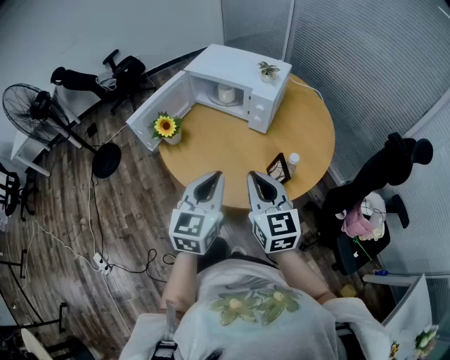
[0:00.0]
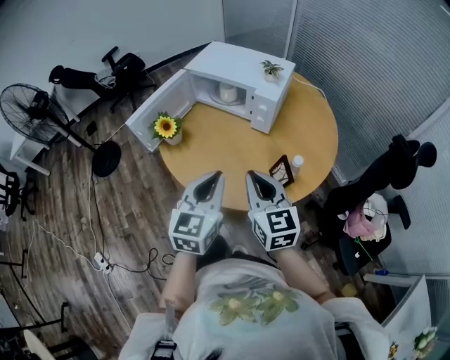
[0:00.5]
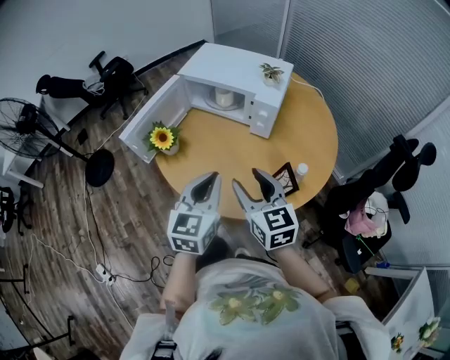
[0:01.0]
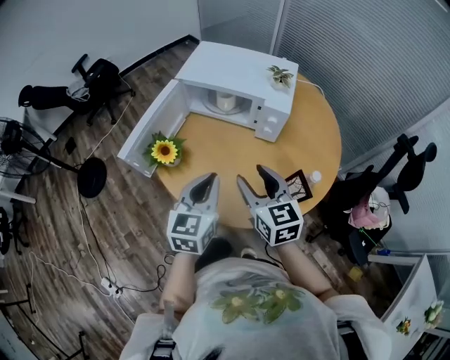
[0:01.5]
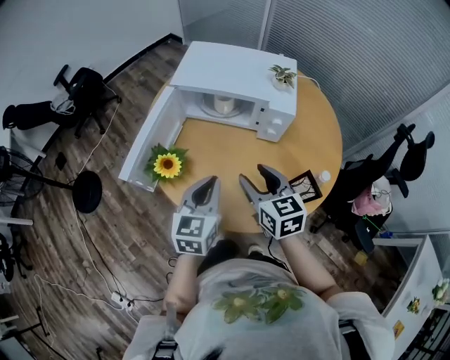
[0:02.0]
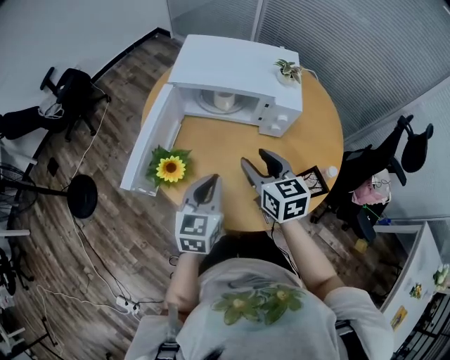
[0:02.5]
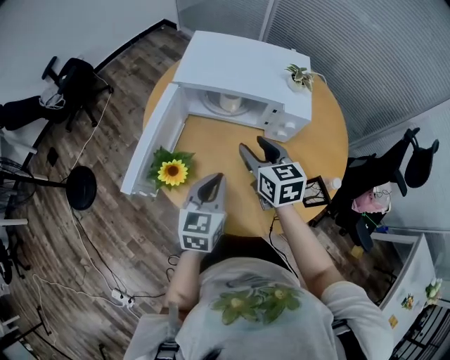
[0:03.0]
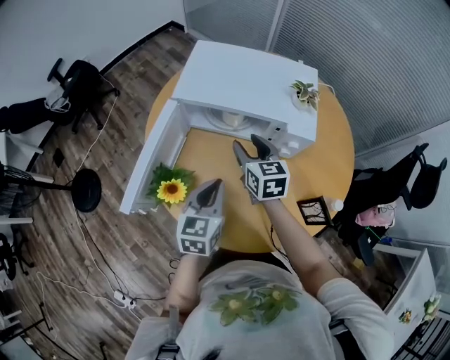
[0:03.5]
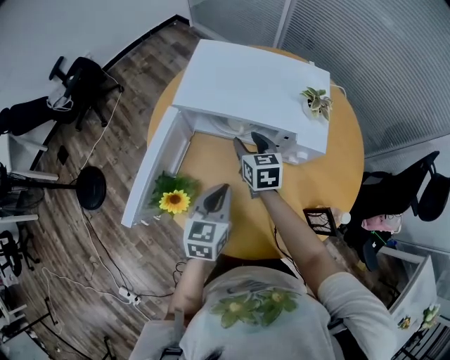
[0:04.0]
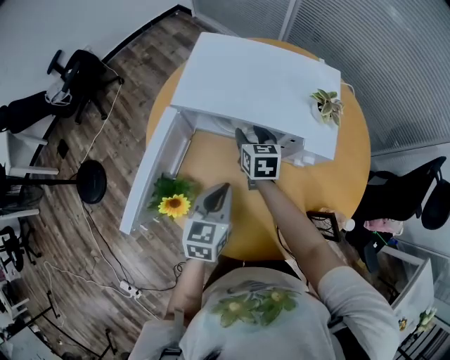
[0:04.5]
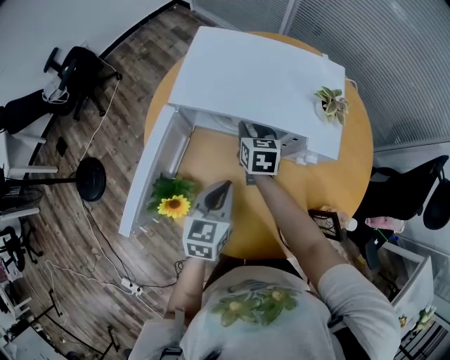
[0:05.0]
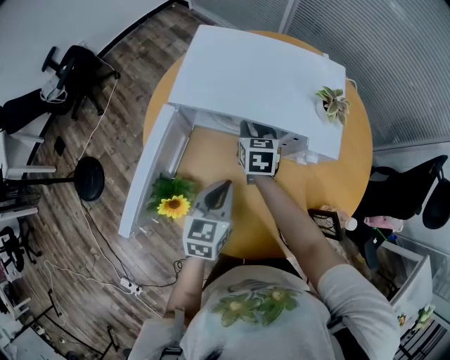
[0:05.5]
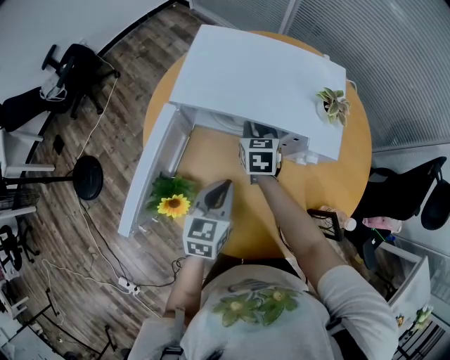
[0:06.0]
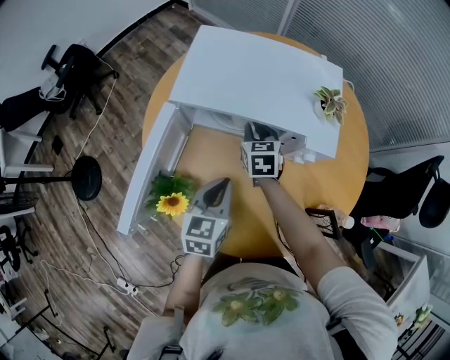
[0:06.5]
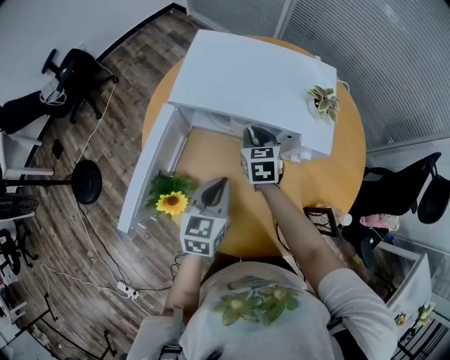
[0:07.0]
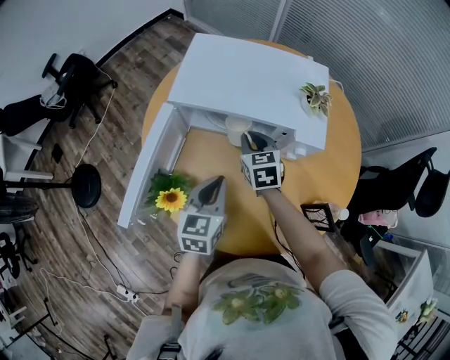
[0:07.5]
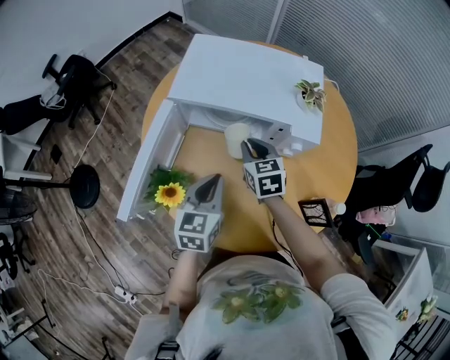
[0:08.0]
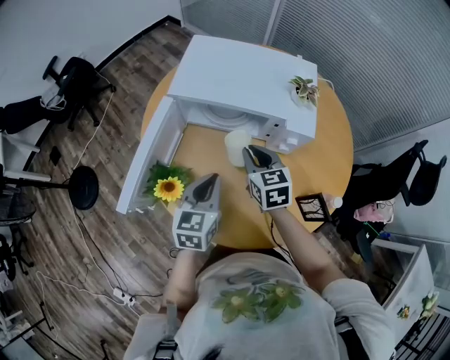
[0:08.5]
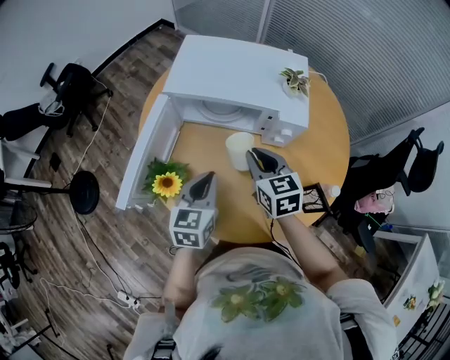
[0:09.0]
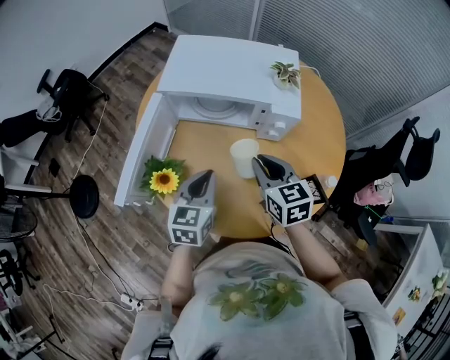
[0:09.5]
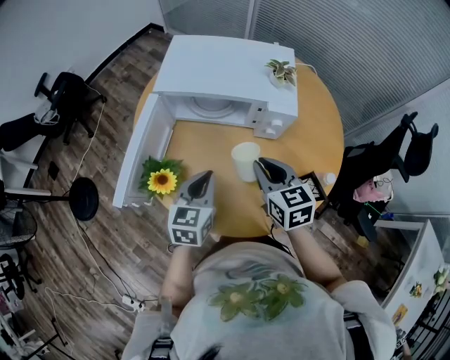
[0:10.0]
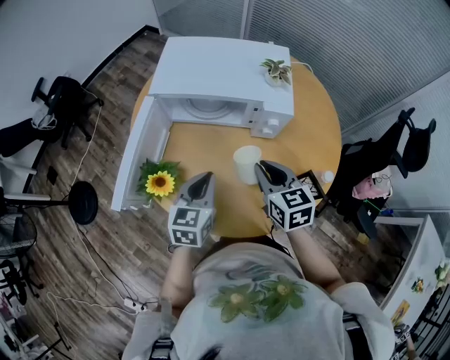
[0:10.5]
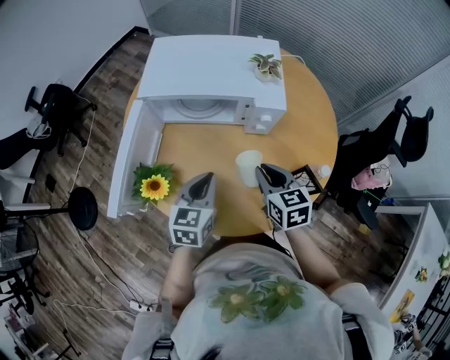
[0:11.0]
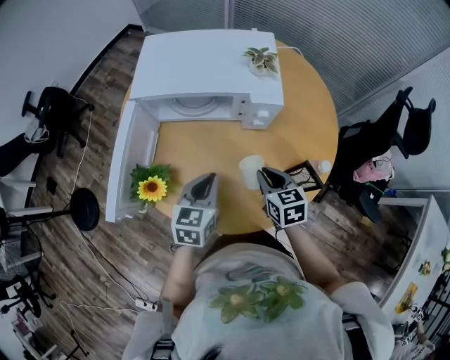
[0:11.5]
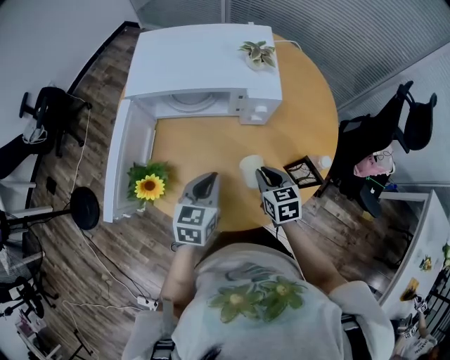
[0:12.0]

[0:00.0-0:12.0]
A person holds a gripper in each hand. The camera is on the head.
0:00.0 to 0:02.0: The right gripper heads forward and to the left, covering some 20 cm, and opens, while the left gripper travels forward, to the left and downward by about 25 cm.
0:02.0 to 0:04.0: The right gripper travels forward and downward by roughly 30 cm, while the left gripper is displaced forward and downward by approximately 15 cm.
0:04.0 to 0:06.0: The right gripper travels forward by some 5 cm, and closes its fingers.
0:06.0 to 0:08.0: The right gripper shifts roughly 10 cm backward.
0:08.0 to 0:10.0: The left gripper goes some 5 cm backward, while the right gripper shifts approximately 20 cm backward, upward and to the right.
0:10.0 to 0:12.0: The right gripper heads downward and to the right, covering roughly 15 cm, while the left gripper goes about 5 cm to the right.

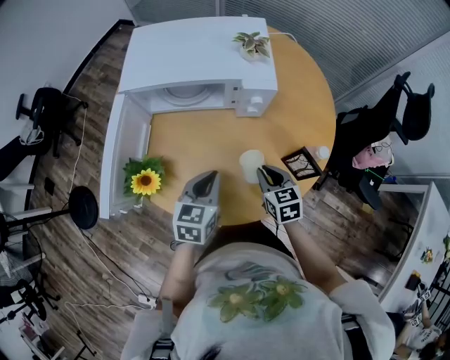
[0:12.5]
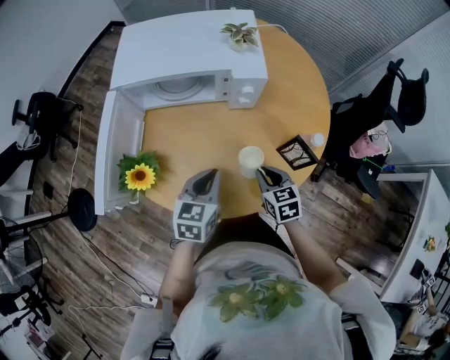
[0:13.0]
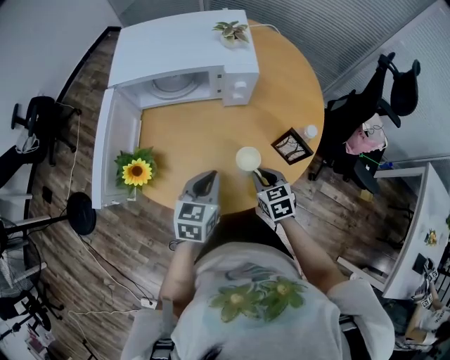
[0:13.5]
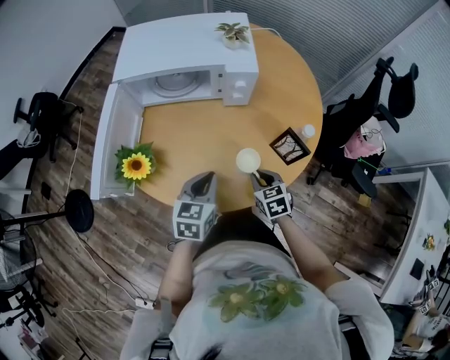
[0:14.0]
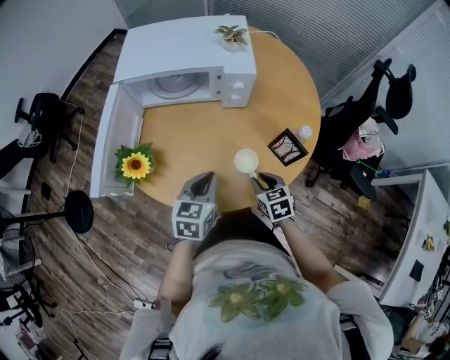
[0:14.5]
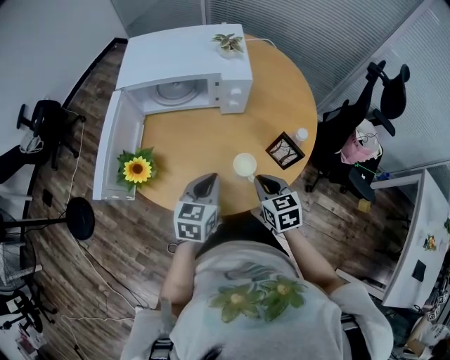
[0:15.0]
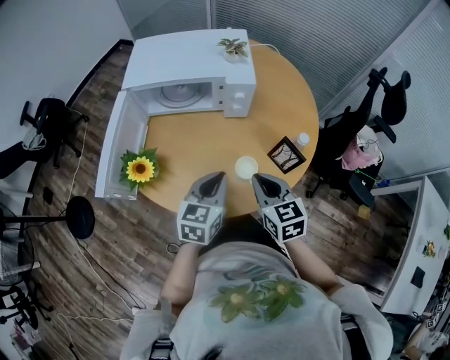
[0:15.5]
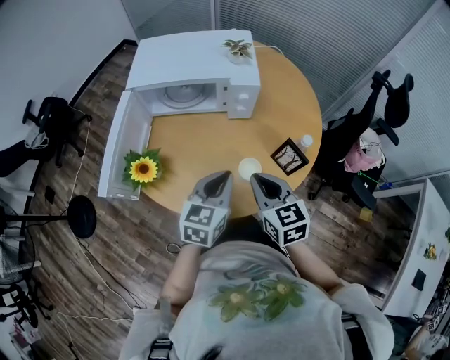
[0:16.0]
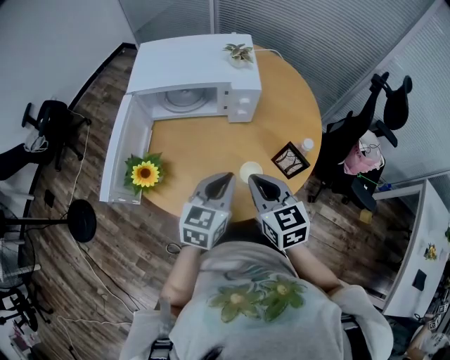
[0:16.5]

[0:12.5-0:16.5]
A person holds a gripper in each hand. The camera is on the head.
0:12.5 to 0:14.5: Both grippers travel together backward, roughly 5 cm.
0:14.5 to 0:16.5: The left gripper is displaced upward by some 10 cm; the right gripper shifts roughly 20 cm upward, changes its angle by roughly 20 degrees, and closes.

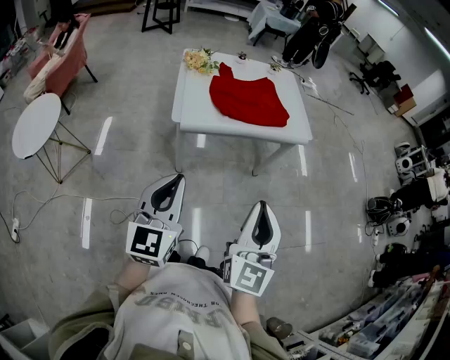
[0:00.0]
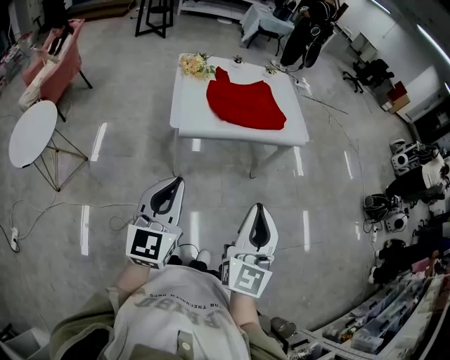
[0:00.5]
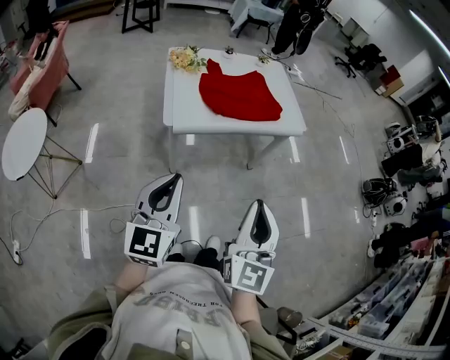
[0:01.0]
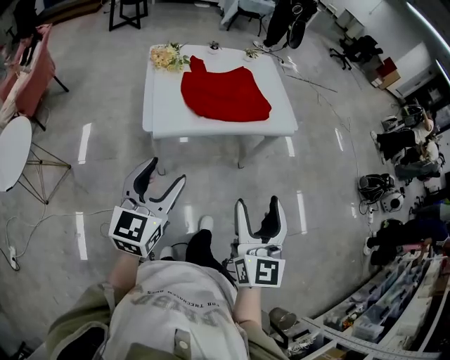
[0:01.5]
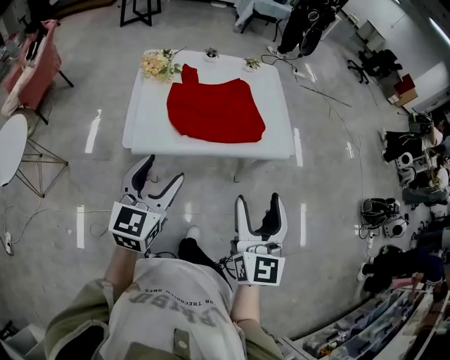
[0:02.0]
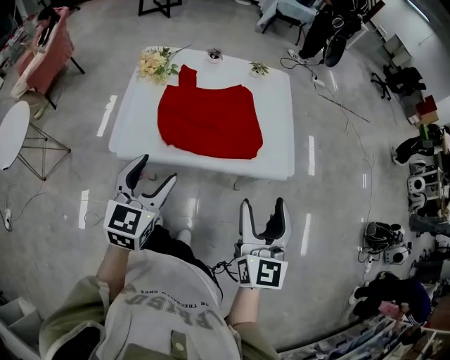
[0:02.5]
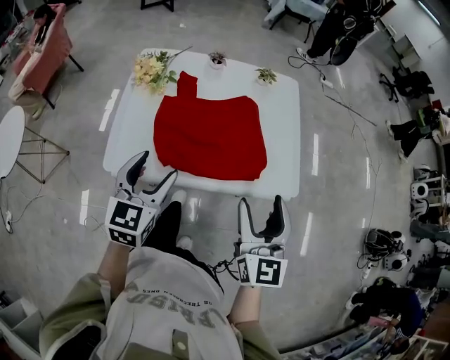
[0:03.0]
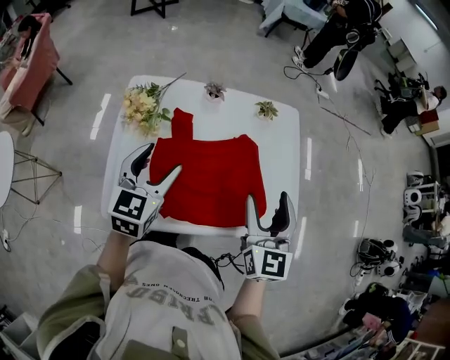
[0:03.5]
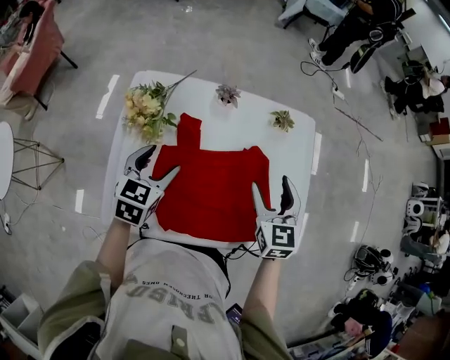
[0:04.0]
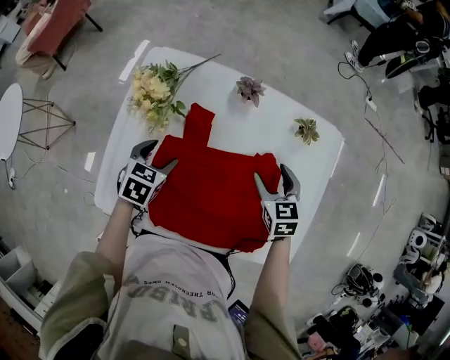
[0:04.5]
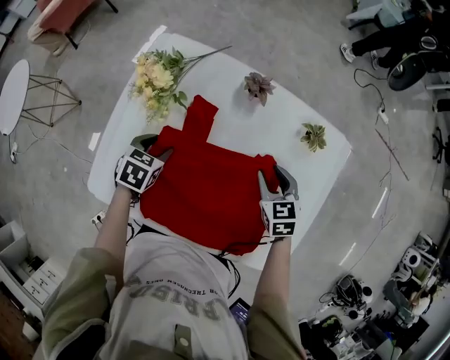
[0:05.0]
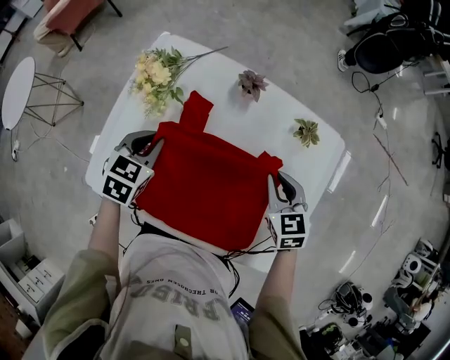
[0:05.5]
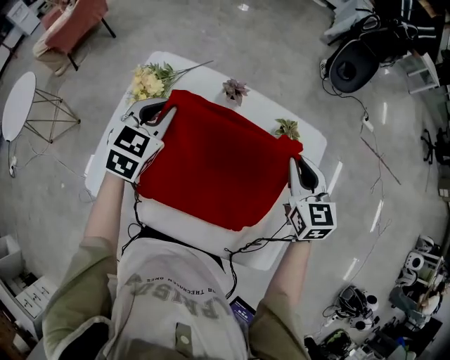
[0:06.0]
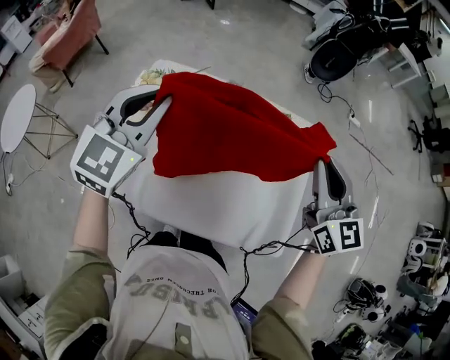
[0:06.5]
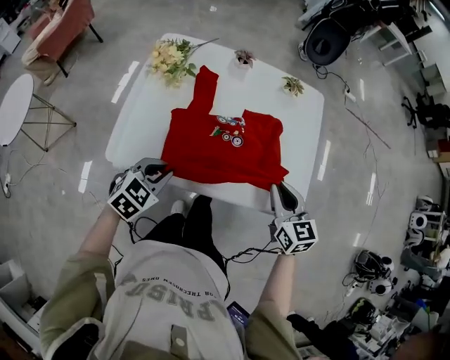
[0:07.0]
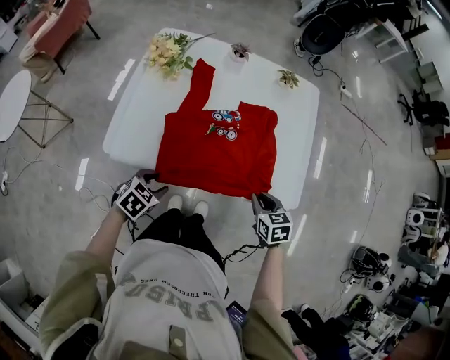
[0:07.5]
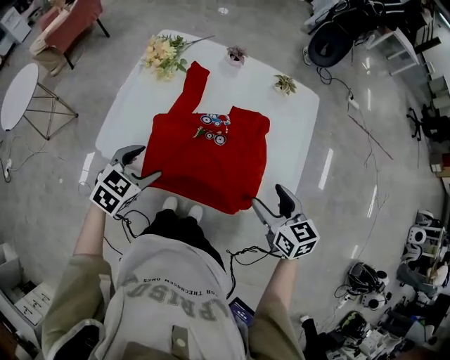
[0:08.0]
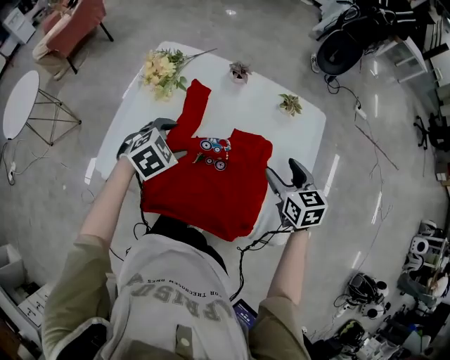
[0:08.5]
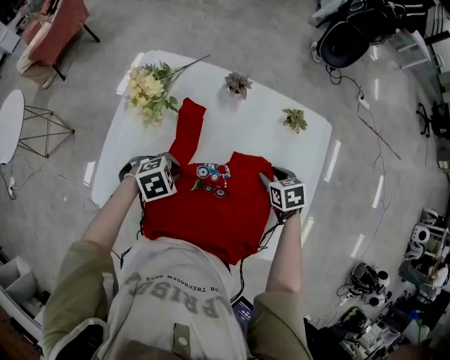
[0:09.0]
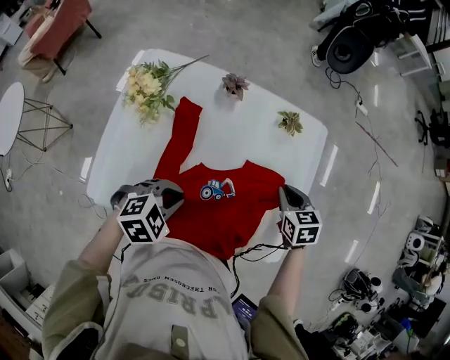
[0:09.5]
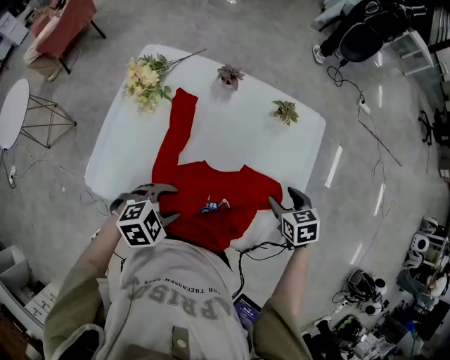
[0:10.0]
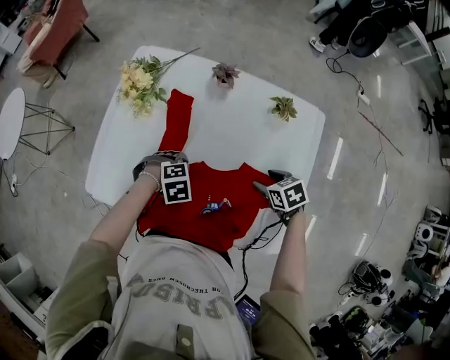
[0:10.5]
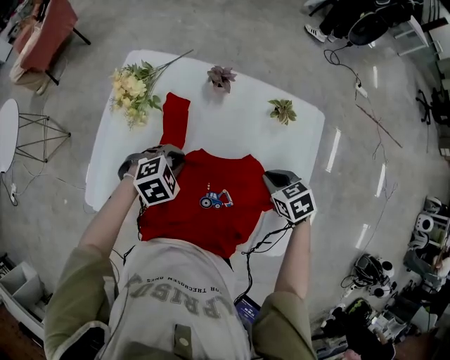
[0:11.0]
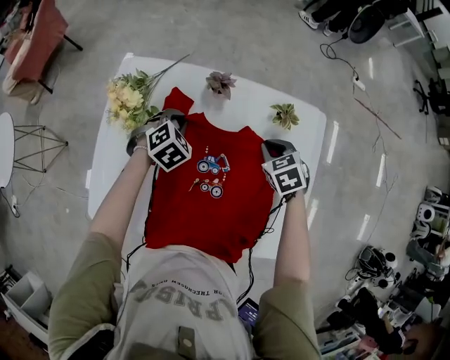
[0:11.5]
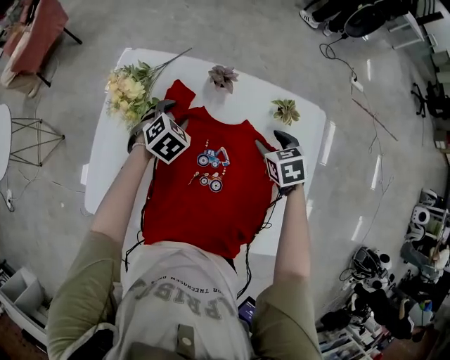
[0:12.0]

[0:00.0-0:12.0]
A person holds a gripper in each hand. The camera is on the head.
0:00.0 to 0:02.0: The right gripper goes about 25 cm forward and to the right, and opens up. The left gripper is displaced forward by roughly 25 cm, and opens its fingers.
0:02.0 to 0:04.0: The pair of grippers is taken forward, about 50 cm. The right gripper turns by roughly 30 degrees. The left gripper swivels about 20 degrees.
0:04.0 to 0:06.0: The left gripper moves forward, roughly 10 cm, goes downward and returns, approximately 15 cm each way, and closes. Meanwhile the right gripper heads forward and to the right, covering approximately 15 cm, goes downward and returns, roughly 15 cm each way, turns by approximately 20 degrees, and closes its fingers.
0:06.0 to 0:08.0: Both grippers travel together backward, roughly 30 cm. The right gripper opens; the left gripper turns by roughly 20 degrees, and opens up.
0:08.0 to 0:10.0: The right gripper moves approximately 20 cm, turns by about 30 degrees, and closes and opens again; the left gripper turns by about 30 degrees, and closes, then reopens.
0:10.0 to 0:12.0: The right gripper moves approximately 20 cm, and closes, then opens again. Meanwhile the left gripper moves roughly 35 cm, rotates some 30 degrees, and closes and opens again.
